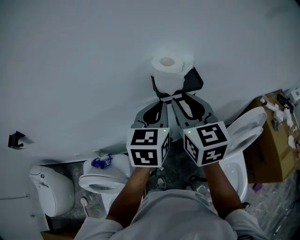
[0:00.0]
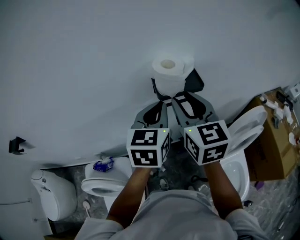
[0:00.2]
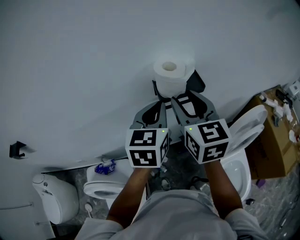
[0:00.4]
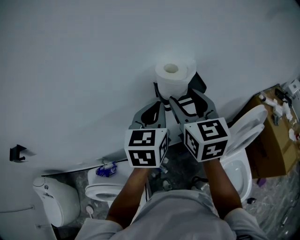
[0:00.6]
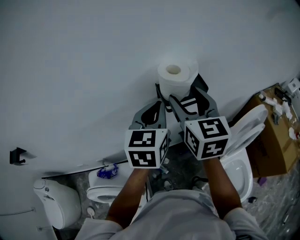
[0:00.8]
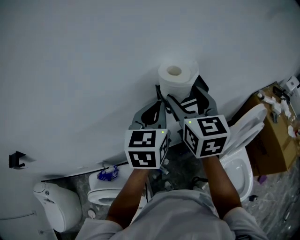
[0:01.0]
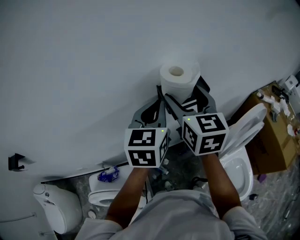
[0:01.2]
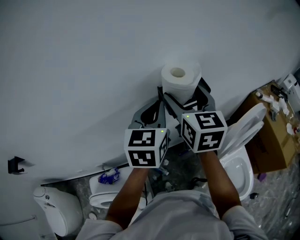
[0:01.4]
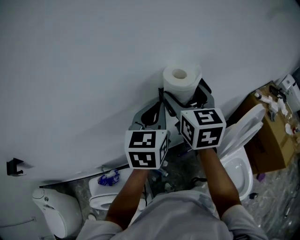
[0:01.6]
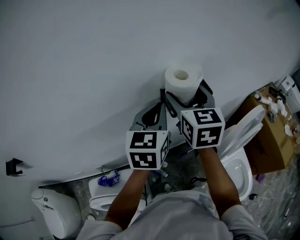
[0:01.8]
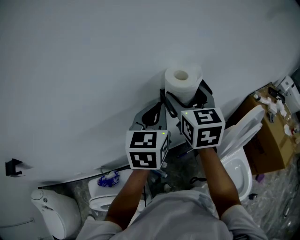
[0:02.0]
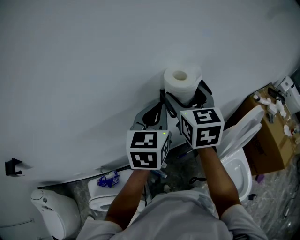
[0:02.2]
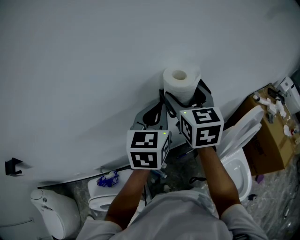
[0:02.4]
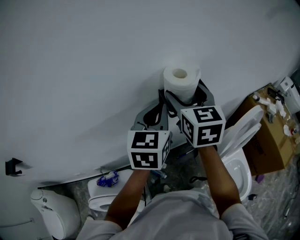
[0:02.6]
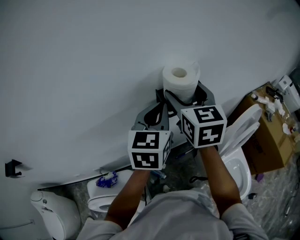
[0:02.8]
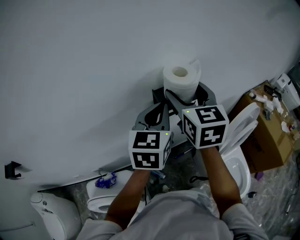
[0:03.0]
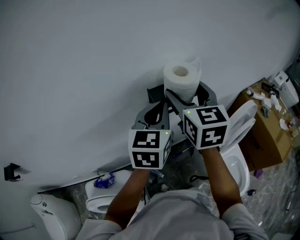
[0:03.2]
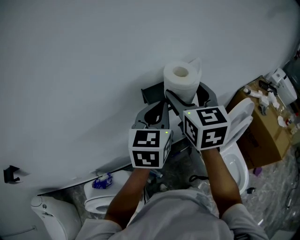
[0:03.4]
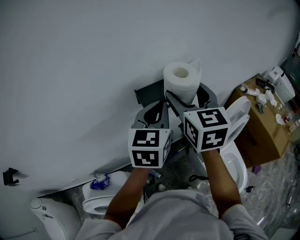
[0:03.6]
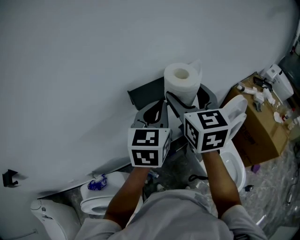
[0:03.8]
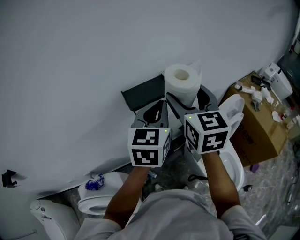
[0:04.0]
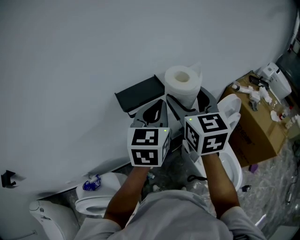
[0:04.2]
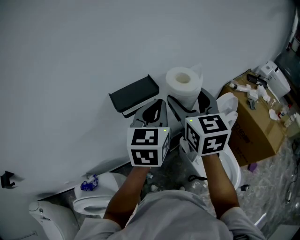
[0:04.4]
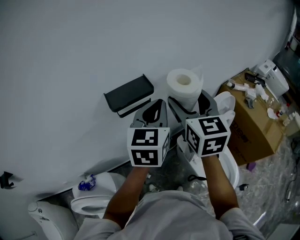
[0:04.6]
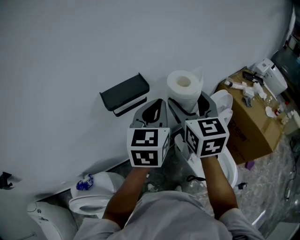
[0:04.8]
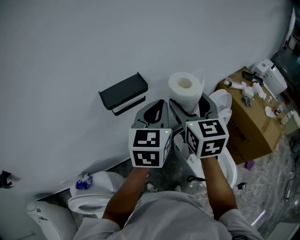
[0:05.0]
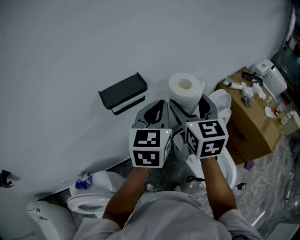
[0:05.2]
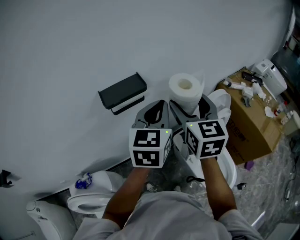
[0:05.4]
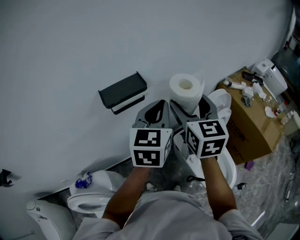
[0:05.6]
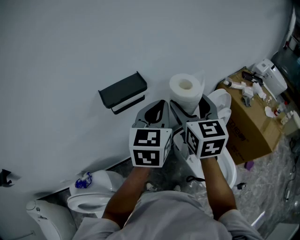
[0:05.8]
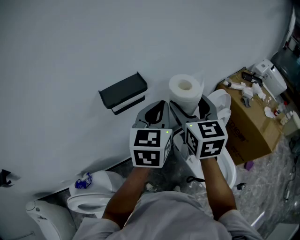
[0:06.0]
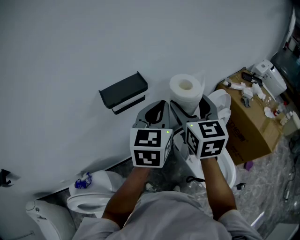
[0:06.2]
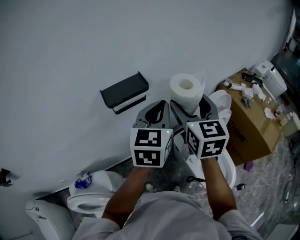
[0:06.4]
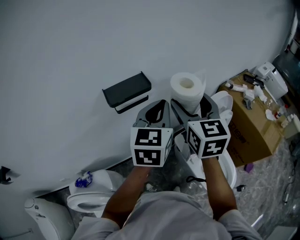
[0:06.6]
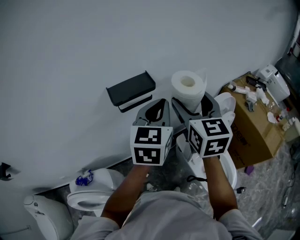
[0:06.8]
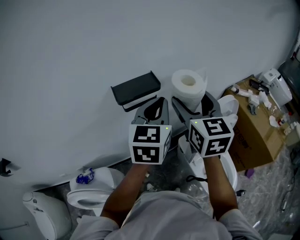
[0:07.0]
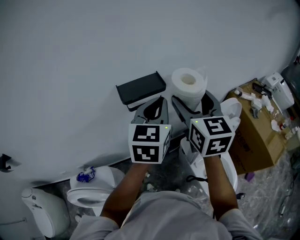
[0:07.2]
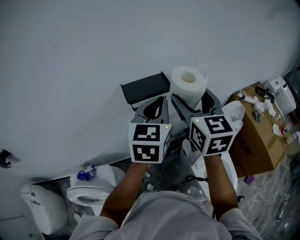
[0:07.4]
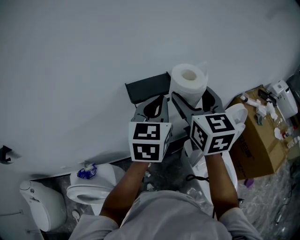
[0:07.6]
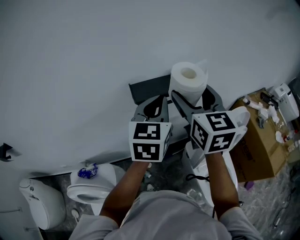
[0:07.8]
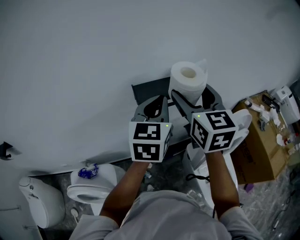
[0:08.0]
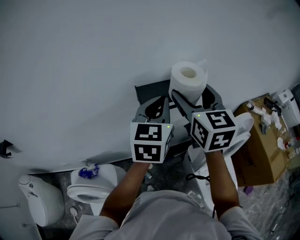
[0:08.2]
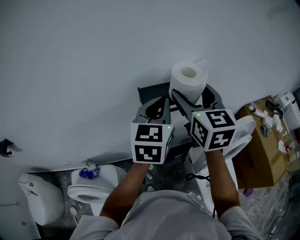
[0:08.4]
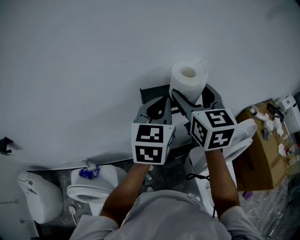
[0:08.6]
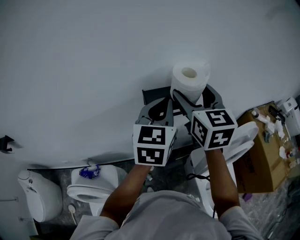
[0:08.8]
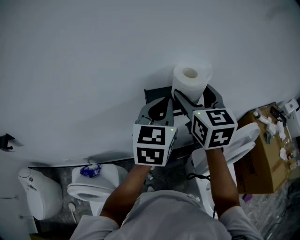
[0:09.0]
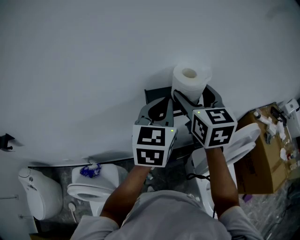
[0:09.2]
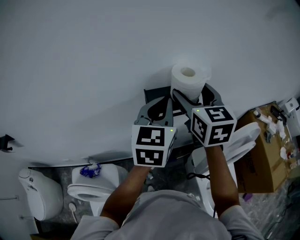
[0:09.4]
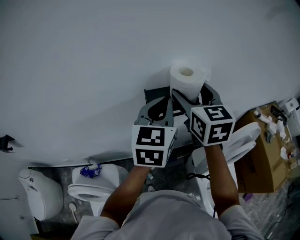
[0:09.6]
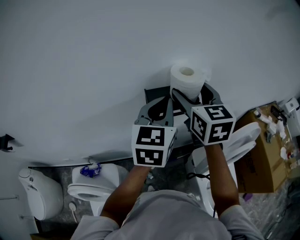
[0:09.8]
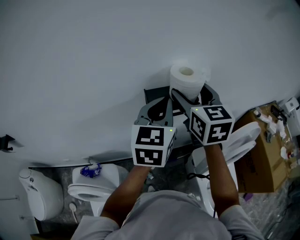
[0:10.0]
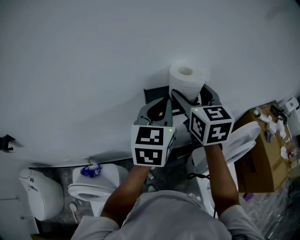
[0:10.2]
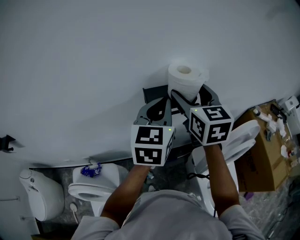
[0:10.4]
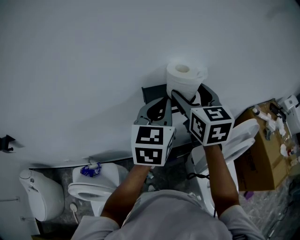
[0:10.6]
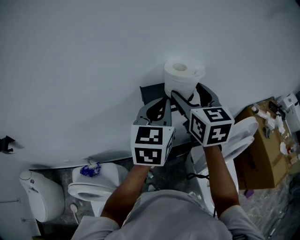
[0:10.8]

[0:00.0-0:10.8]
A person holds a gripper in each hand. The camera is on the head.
0:00.0 to 0:01.6: The left gripper moves about 5 cm. The right gripper travels forward by approximately 10 cm, and opens.
0:01.6 to 0:03.0: The grippers move only a little.
0:03.0 to 0:04.6: Both grippers move to the right, some 20 cm.
0:04.6 to 0:06.2: The grippers stay close to where they were, moving slightly.
0:06.2 to 0:07.8: Both grippers move to the left, some 10 cm.
0:07.8 to 0:09.2: The right gripper travels forward by some 5 cm. The left gripper changes place by approximately 5 cm.
0:09.2 to 0:10.8: The grippers stay close to where they were, moving slightly.

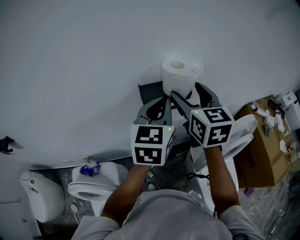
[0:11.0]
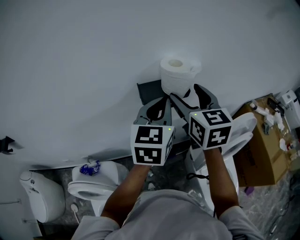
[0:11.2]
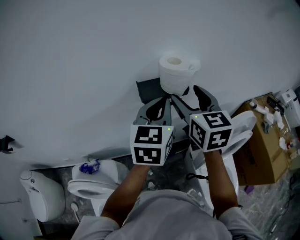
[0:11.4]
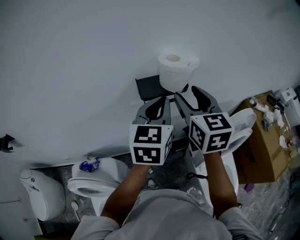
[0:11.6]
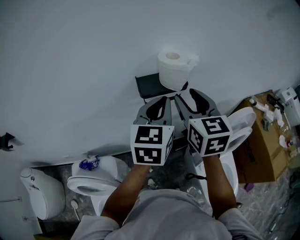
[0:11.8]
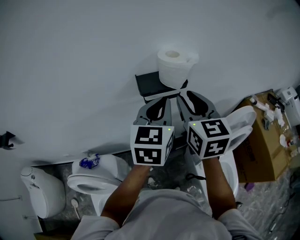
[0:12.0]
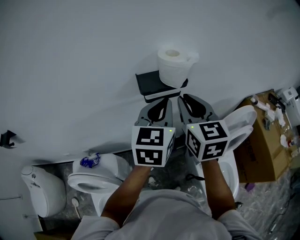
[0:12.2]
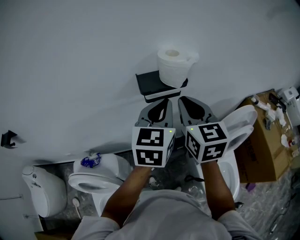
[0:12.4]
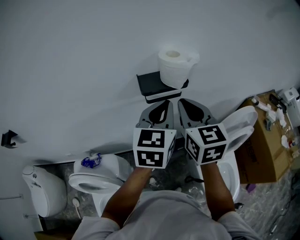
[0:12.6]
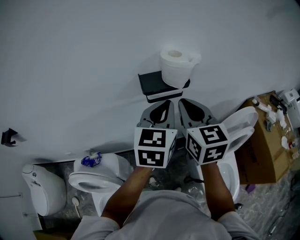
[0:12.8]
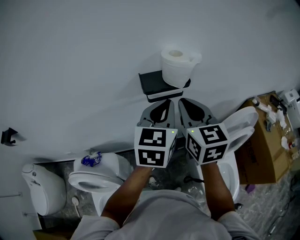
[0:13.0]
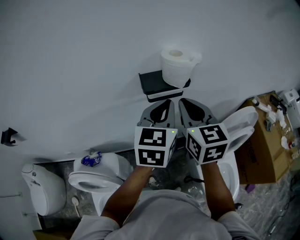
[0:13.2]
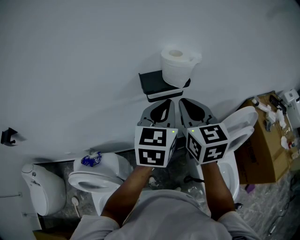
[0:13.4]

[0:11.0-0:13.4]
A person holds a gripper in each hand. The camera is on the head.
0:11.0 to 0:12.2: The right gripper moves backward, approximately 5 cm, and closes up.
0:12.2 to 0:13.4: The grippers stay close to where they were, moving slightly.

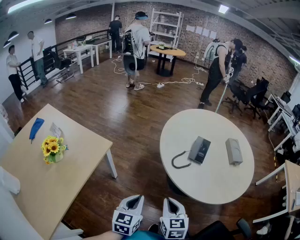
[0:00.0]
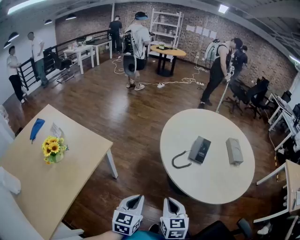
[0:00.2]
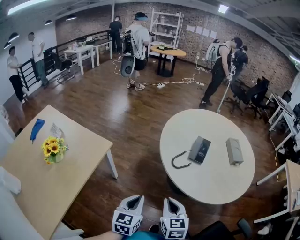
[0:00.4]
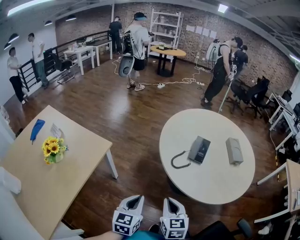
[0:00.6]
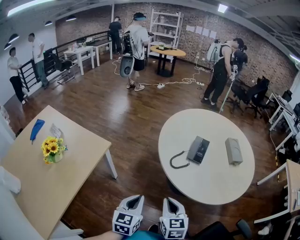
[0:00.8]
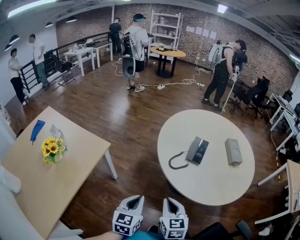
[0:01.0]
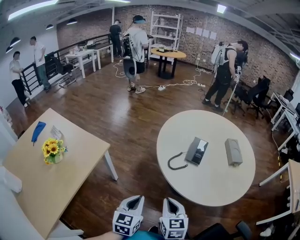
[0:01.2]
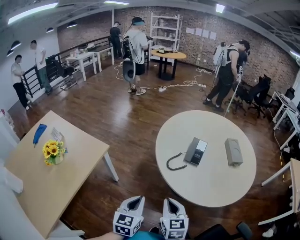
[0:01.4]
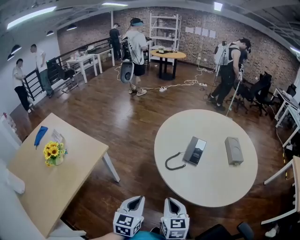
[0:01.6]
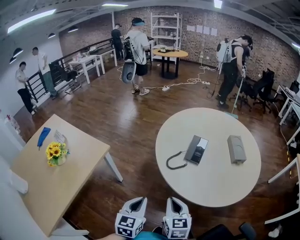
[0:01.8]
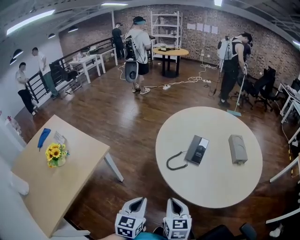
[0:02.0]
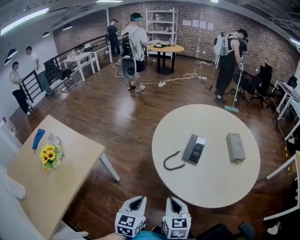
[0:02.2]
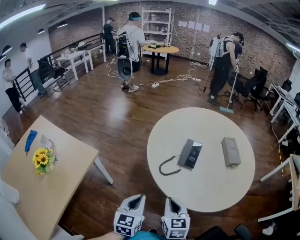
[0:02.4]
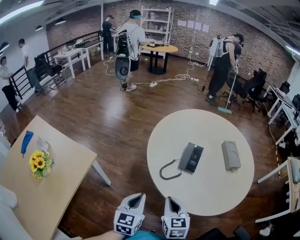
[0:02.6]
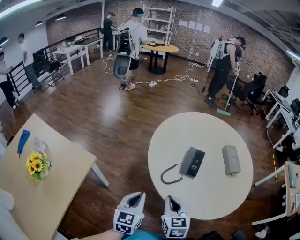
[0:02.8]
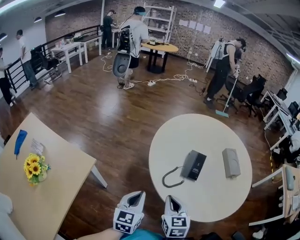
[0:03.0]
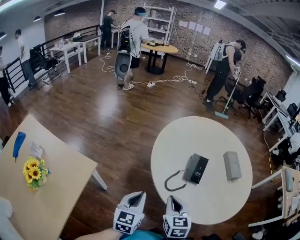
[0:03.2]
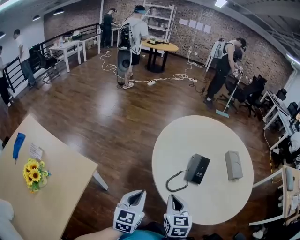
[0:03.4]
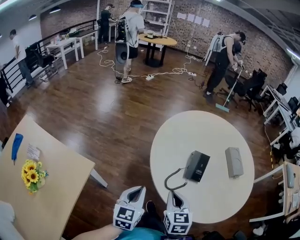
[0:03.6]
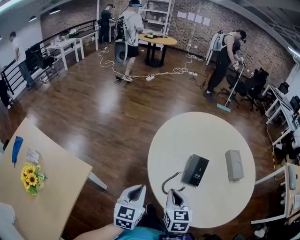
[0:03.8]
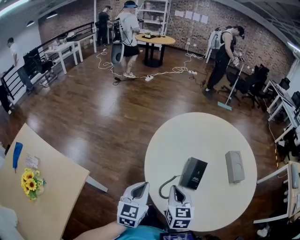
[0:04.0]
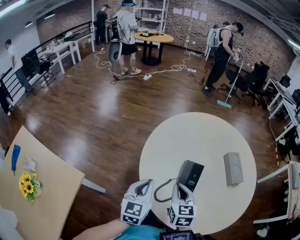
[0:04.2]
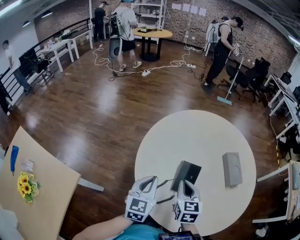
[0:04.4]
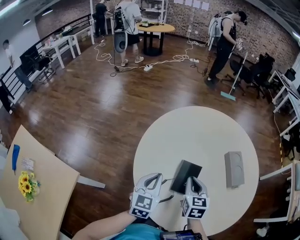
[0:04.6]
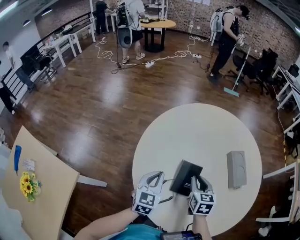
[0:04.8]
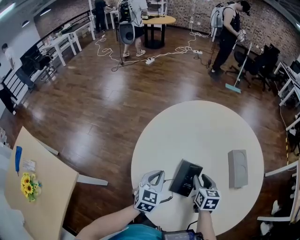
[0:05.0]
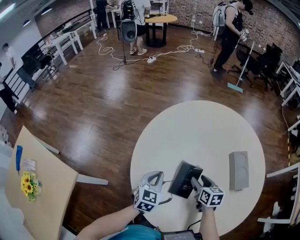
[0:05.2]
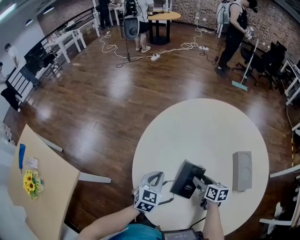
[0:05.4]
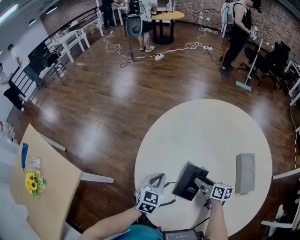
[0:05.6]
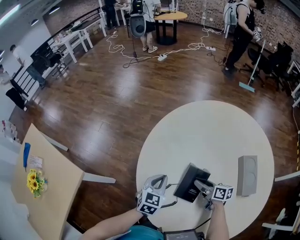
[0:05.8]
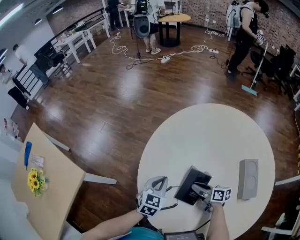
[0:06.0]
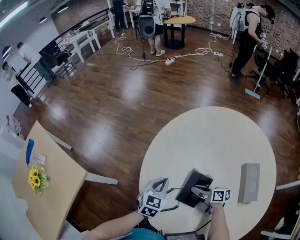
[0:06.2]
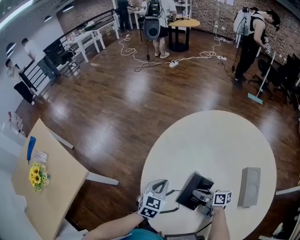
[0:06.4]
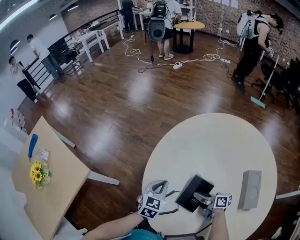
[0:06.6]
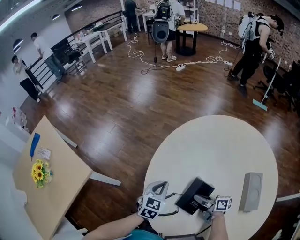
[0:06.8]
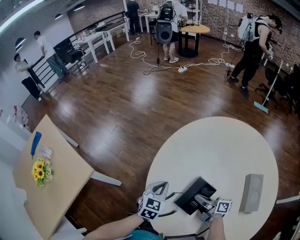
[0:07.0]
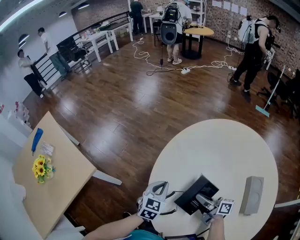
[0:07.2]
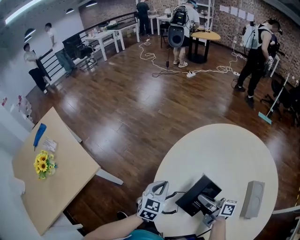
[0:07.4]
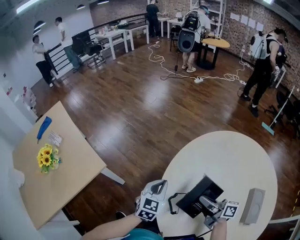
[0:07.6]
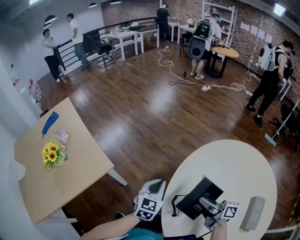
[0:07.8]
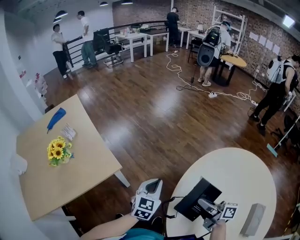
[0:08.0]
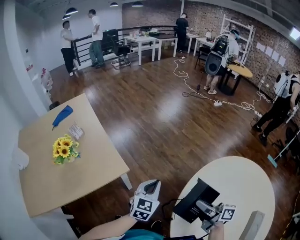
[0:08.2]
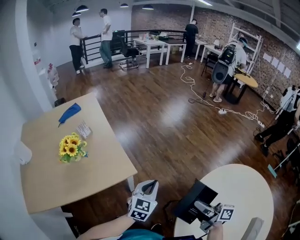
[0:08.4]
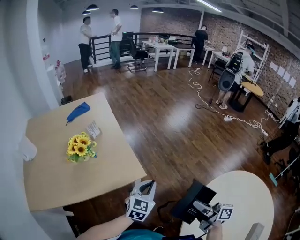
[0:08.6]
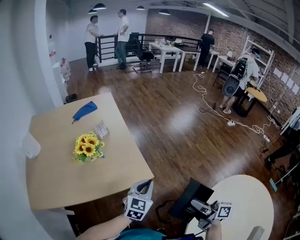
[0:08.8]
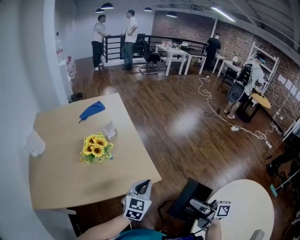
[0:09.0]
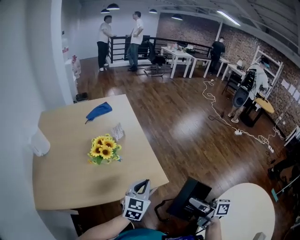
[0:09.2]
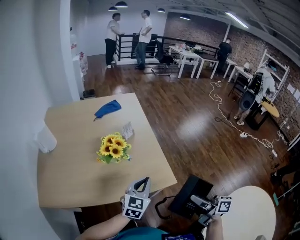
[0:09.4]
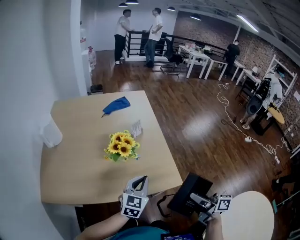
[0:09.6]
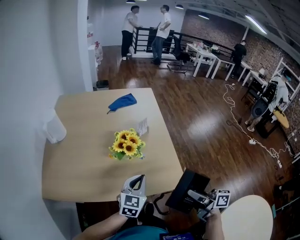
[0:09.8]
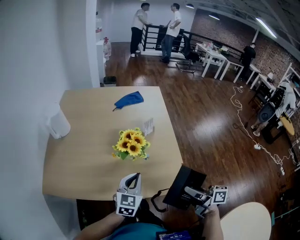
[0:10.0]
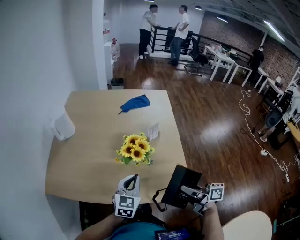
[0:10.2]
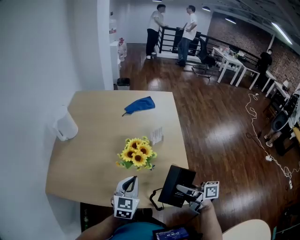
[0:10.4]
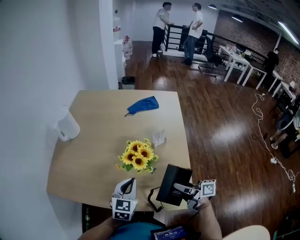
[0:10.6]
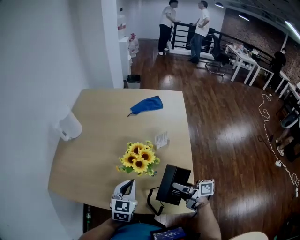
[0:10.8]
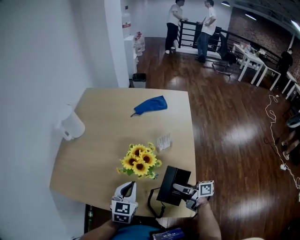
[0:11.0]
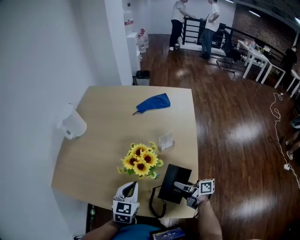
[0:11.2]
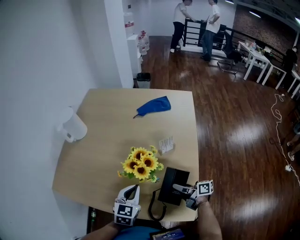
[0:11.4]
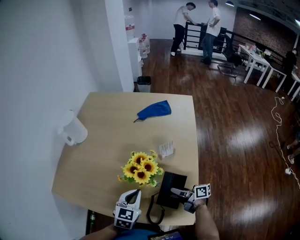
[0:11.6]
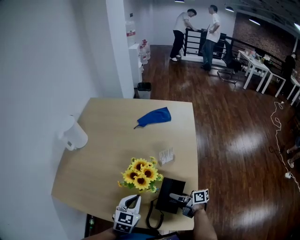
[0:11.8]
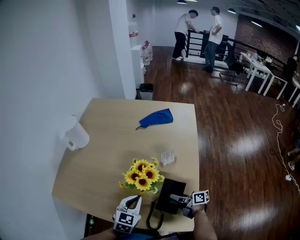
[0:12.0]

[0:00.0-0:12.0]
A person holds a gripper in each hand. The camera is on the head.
0:00.0 to 0:01.6: The two grippers go some 5 cm to the right.
0:01.6 to 0:03.0: Both grippers move forward, roughly 15 cm.
0:03.0 to 0:04.4: The grippers both shift forward and to the right by roughly 25 cm.
0:04.4 to 0:06.0: The right gripper heads downward, covering some 20 cm, swivels about 60 degrees, and opens up; the left gripper heads downward, covering about 10 cm.
0:06.0 to 0:07.6: The left gripper goes roughly 15 cm to the left and upward, while the right gripper moves upward and to the left, about 15 cm, turns by about 20 degrees, and closes.
0:07.6 to 0:09.0: The left gripper shifts by roughly 40 cm, and turns by about 30 degrees. Meanwhile the right gripper moves about 40 cm, and changes its angle by approximately 30 degrees.
0:09.0 to 0:10.4: The right gripper moves some 35 cm, and rotates about 30 degrees; the left gripper ends up some 25 cm from where it was, and turns by approximately 30 degrees.
0:10.4 to 0:12.0: The left gripper is displaced downward by approximately 5 cm, while the right gripper moves downward and forward, approximately 20 cm.
